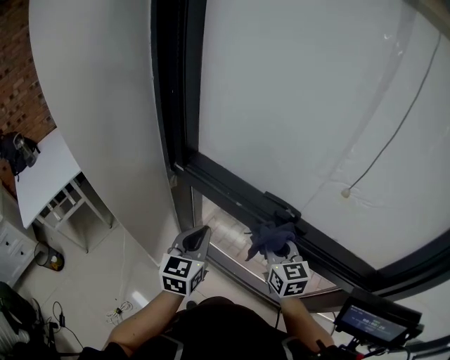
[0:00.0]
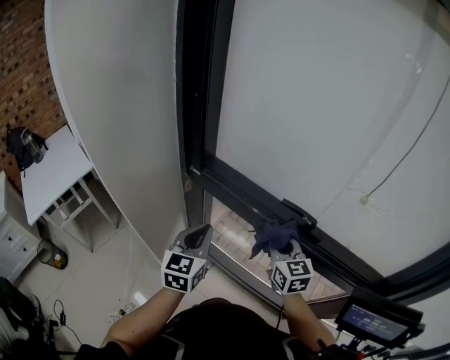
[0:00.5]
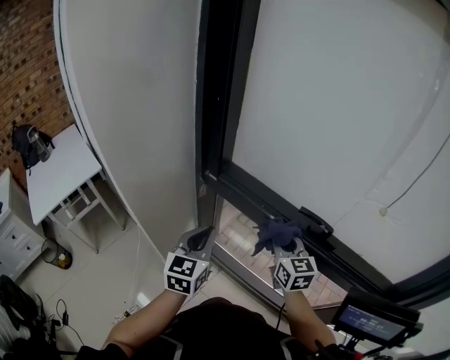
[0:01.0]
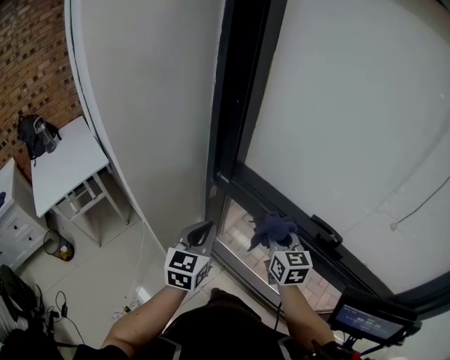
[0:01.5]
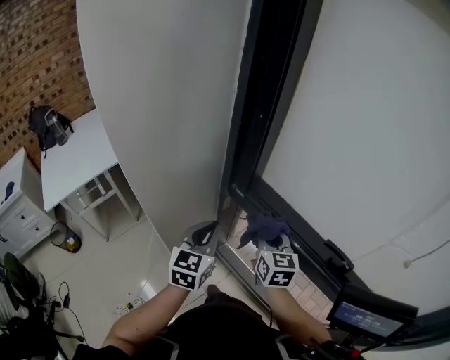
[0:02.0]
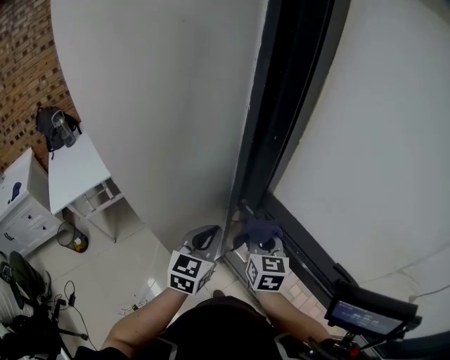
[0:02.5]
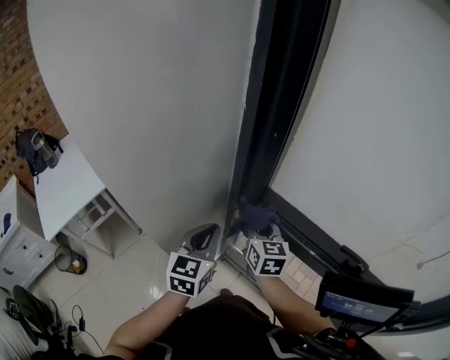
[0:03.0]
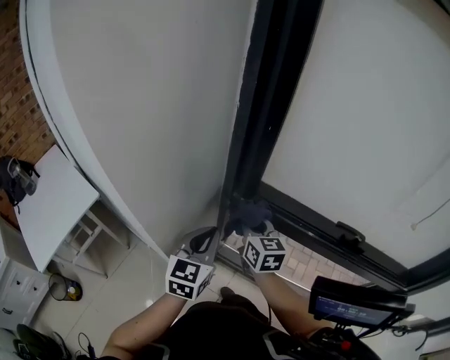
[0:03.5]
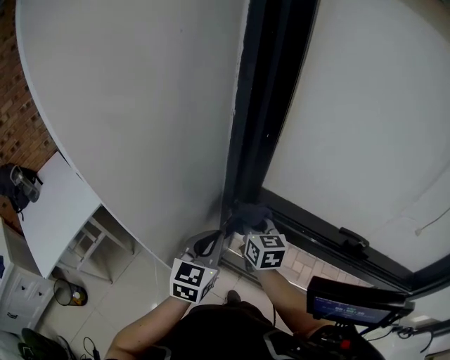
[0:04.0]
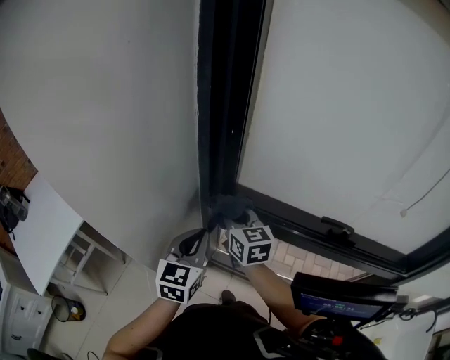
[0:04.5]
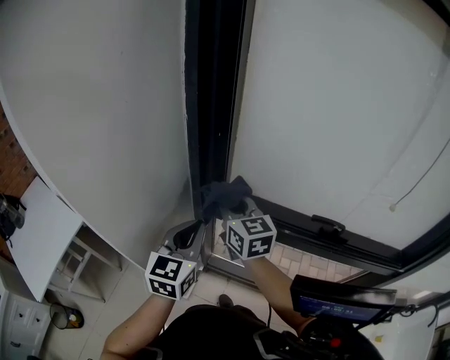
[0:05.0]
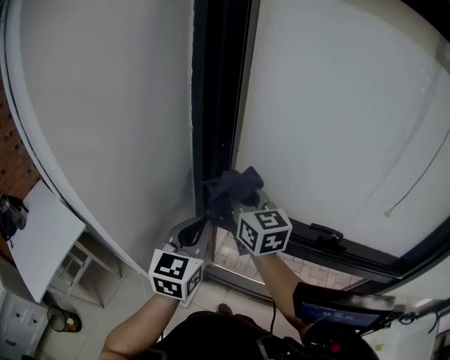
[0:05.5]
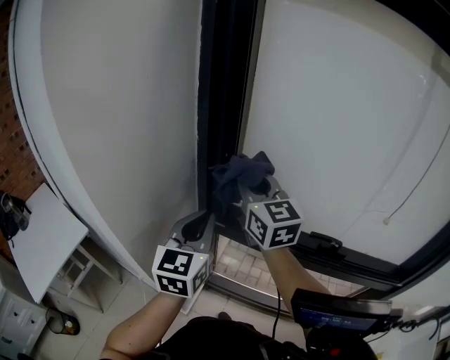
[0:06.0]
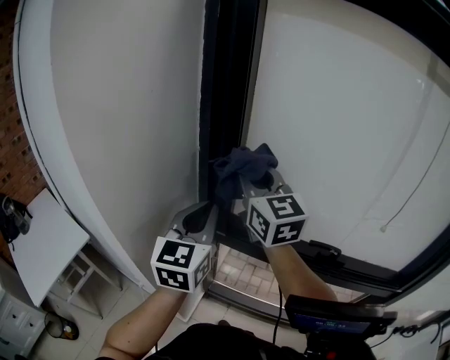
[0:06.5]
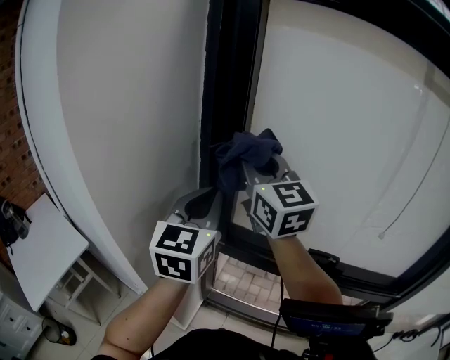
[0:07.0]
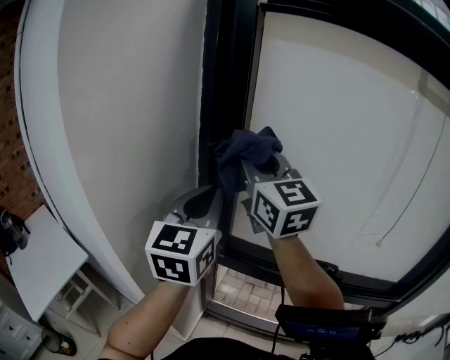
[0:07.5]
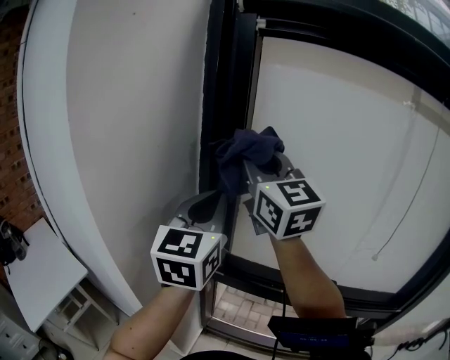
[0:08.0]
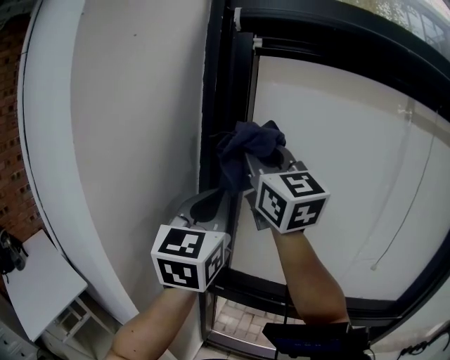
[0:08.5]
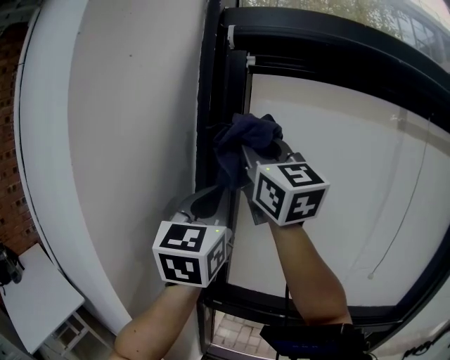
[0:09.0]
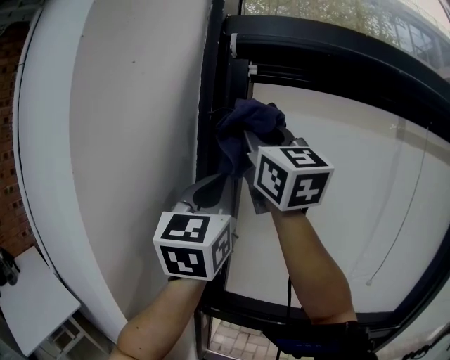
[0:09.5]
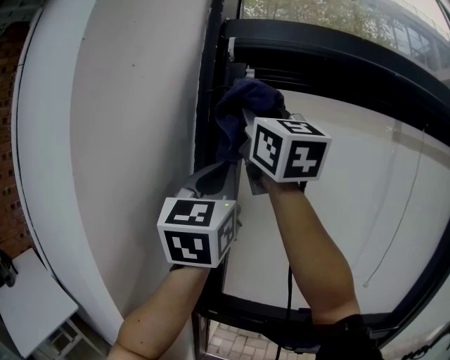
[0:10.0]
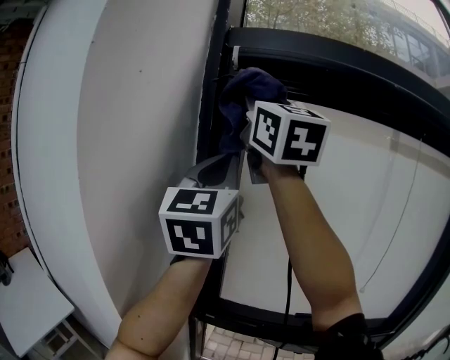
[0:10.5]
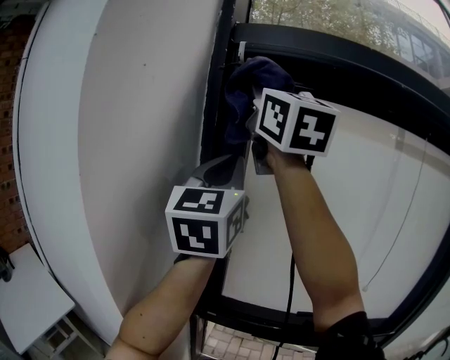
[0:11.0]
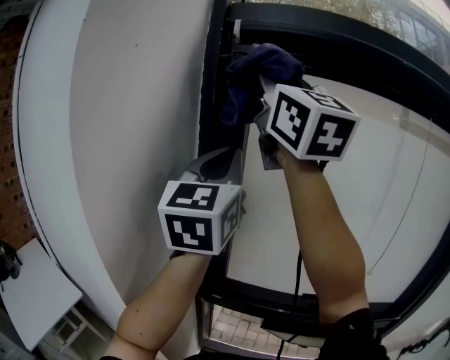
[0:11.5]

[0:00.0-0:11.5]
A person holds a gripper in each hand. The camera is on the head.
0:00.0 to 0:02.0: The two grippers go some 20 cm to the left and forward.
0:02.0 to 0:04.0: The right gripper goes some 10 cm to the left and forward; the left gripper moves approximately 5 cm.
0:04.0 to 0:06.0: The right gripper travels upward by approximately 25 cm, and changes its angle by roughly 30 degrees; the left gripper travels upward by about 15 cm.
0:06.0 to 0:07.5: The grippers both shift upward by some 15 cm.
0:07.5 to 0:09.5: The grippers both shift upward by some 20 cm.
0:09.5 to 0:11.5: The right gripper goes approximately 5 cm upward.

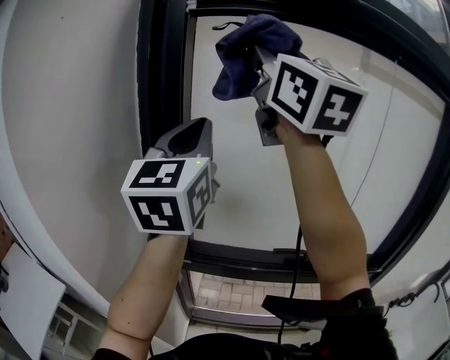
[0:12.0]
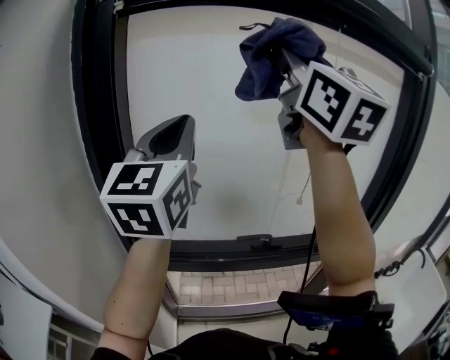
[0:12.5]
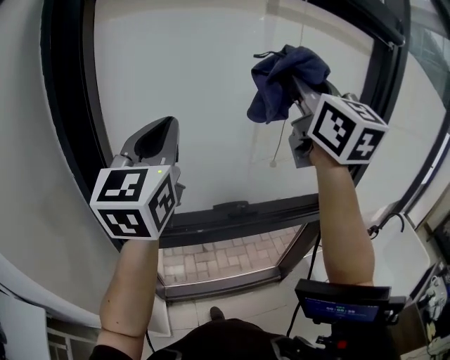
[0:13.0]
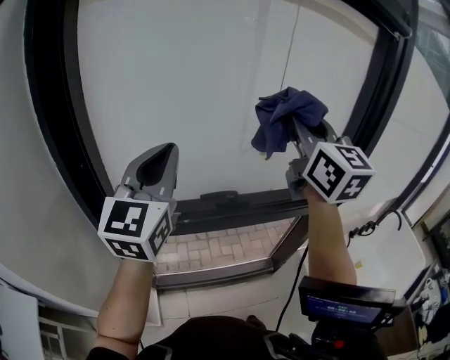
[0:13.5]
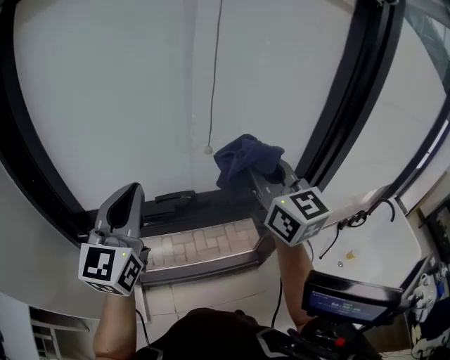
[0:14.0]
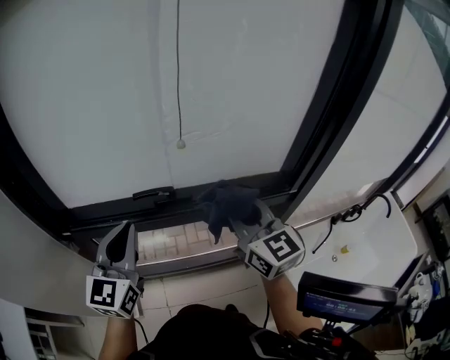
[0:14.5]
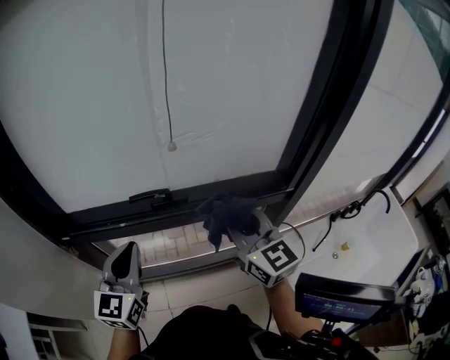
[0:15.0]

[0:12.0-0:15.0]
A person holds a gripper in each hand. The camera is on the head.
0:12.0 to 0:13.5: The left gripper moves about 25 cm, and rotates approximately 20 degrees; the right gripper shifts by roughly 40 cm, and turns by about 30 degrees.
0:13.5 to 0:15.0: The two grippers go about 25 cm downward.

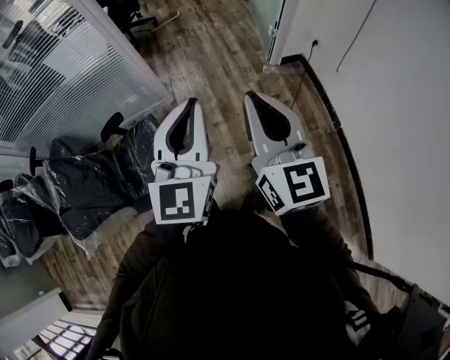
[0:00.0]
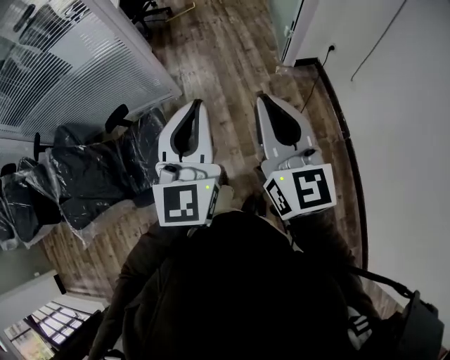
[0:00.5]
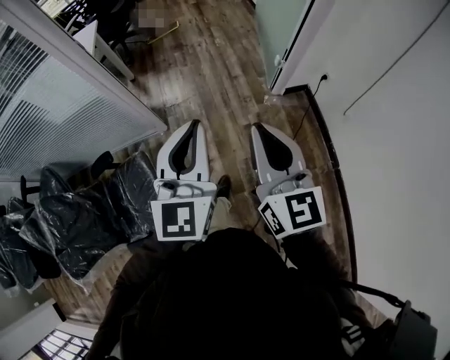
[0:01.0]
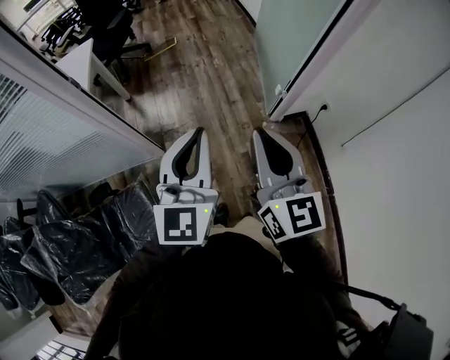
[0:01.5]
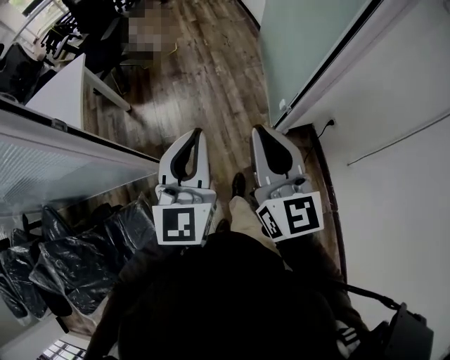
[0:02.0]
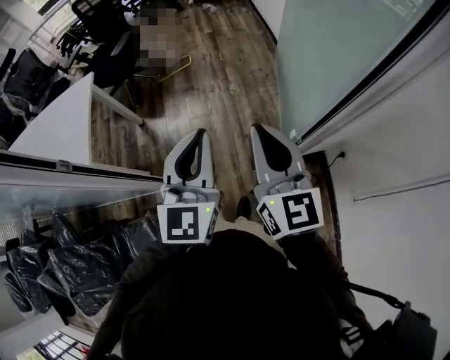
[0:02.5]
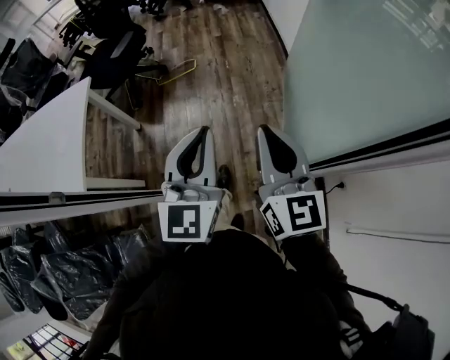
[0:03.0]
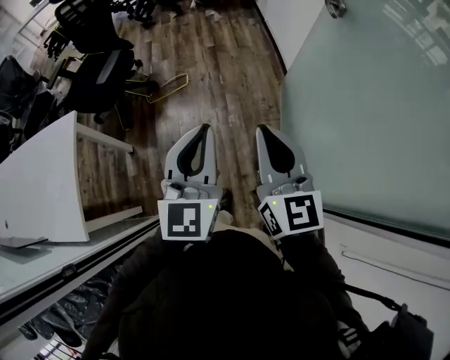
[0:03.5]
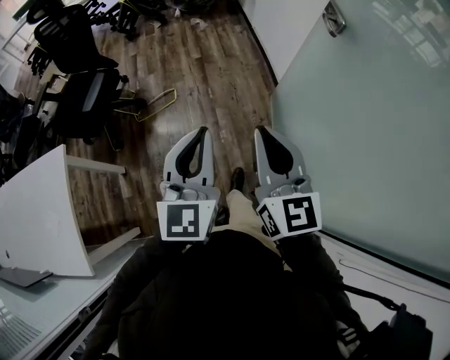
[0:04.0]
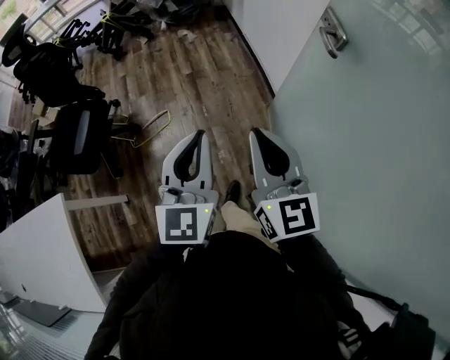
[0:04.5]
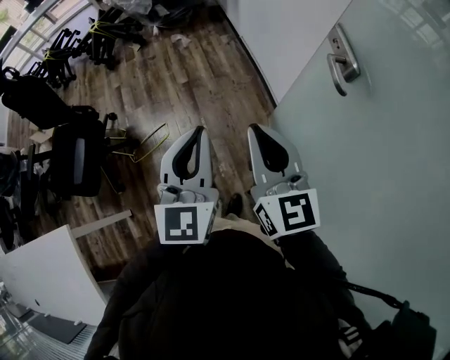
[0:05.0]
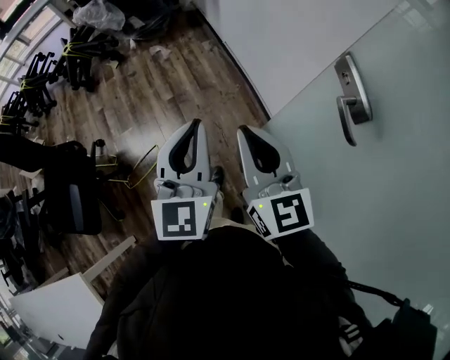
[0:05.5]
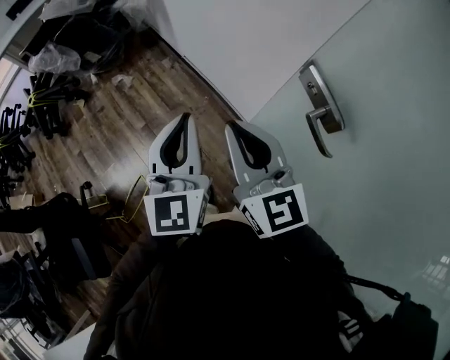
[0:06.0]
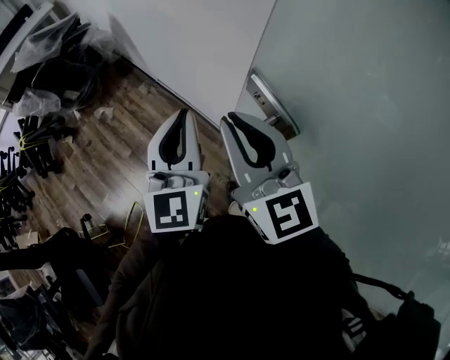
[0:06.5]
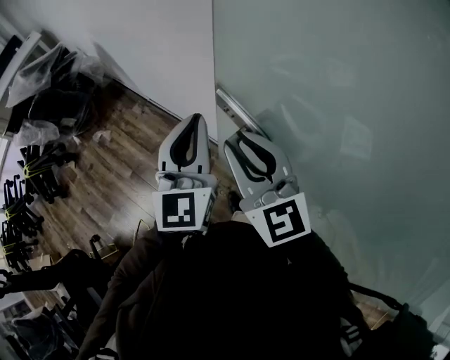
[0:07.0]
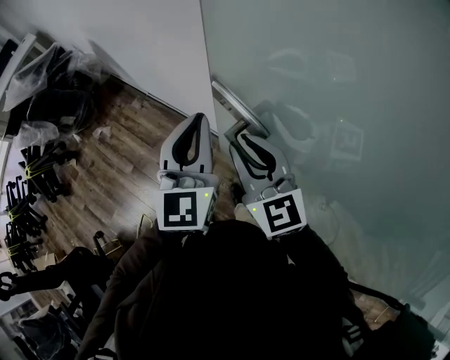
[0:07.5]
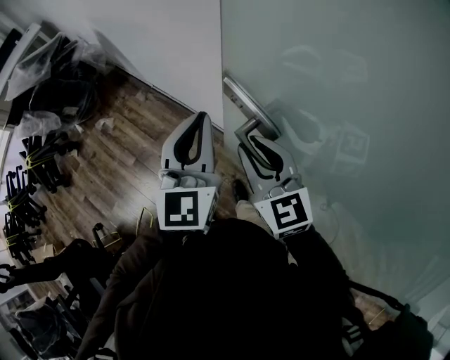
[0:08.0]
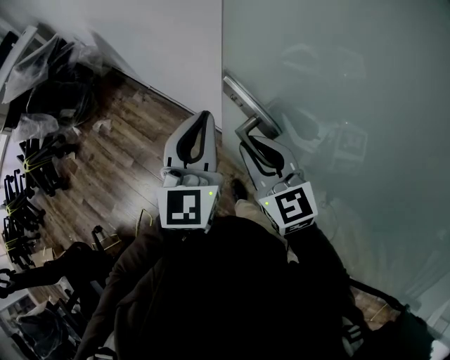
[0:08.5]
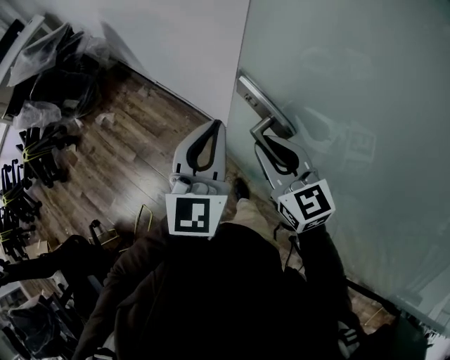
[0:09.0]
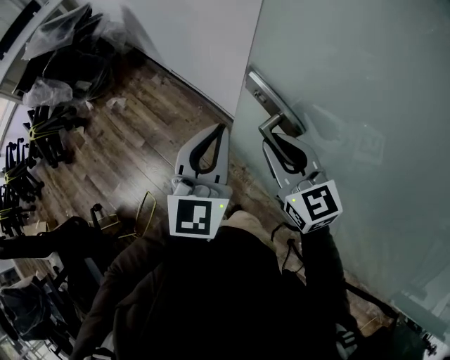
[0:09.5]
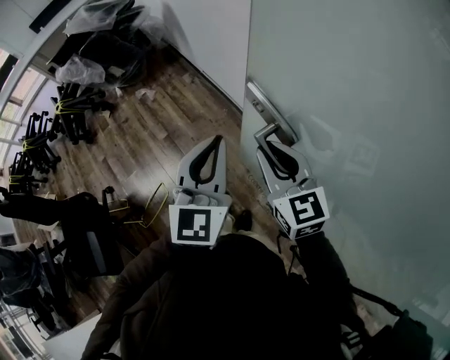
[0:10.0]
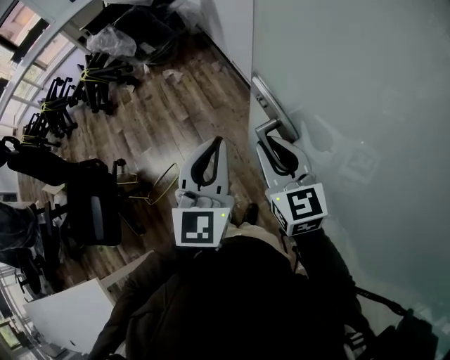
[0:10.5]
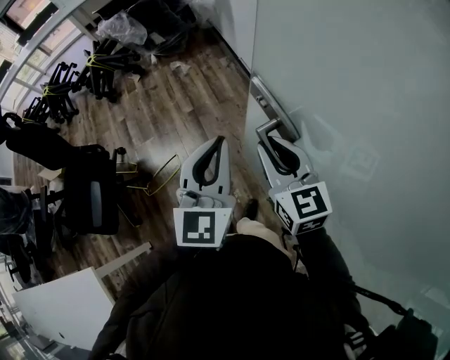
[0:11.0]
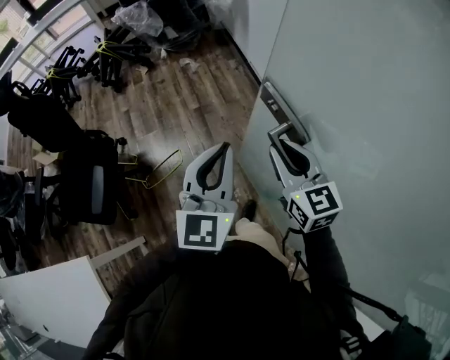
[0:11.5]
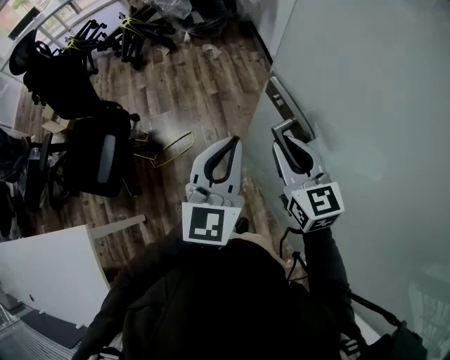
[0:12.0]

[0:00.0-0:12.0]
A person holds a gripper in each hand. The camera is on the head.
0:00.0 to 0:02.0: The two grippers travel together, forward, some 50 cm.
0:02.0 to 0:04.0: The two grippers travel together, forward, some 70 cm.
0:04.0 to 0:06.0: Both grippers are carried forward, about 60 cm. The left gripper rotates roughly 20 degrees.
0:06.0 to 0:08.0: Both grippers travel together to the right, about 20 cm.
0:08.0 to 0:10.0: The left gripper goes roughly 20 cm backward and to the left; the right gripper moves to the left and backward, some 15 cm.
0:10.0 to 0:12.0: Both grippers travel together to the left and backward, about 30 cm. The right gripper rotates some 20 degrees; the left gripper swivels about 20 degrees.
